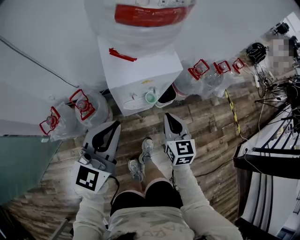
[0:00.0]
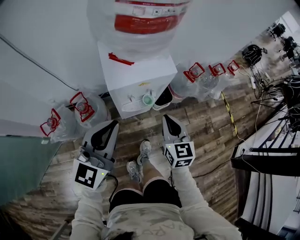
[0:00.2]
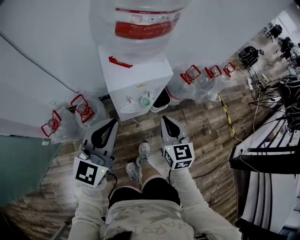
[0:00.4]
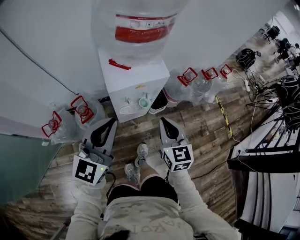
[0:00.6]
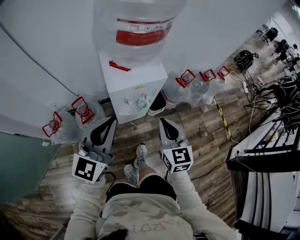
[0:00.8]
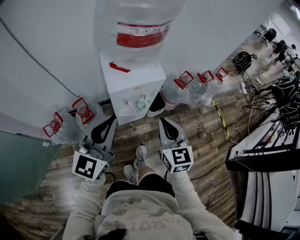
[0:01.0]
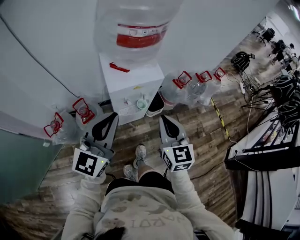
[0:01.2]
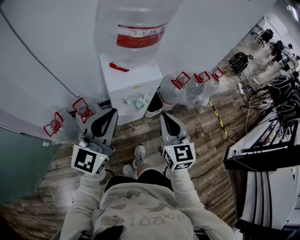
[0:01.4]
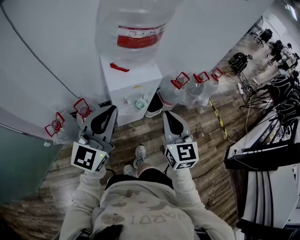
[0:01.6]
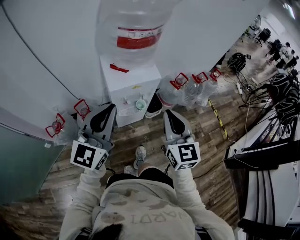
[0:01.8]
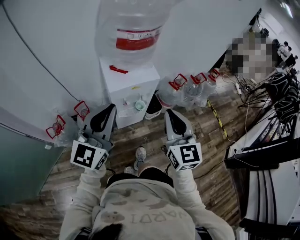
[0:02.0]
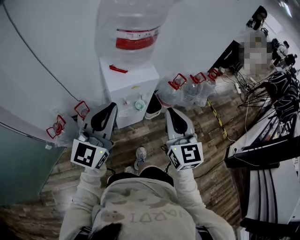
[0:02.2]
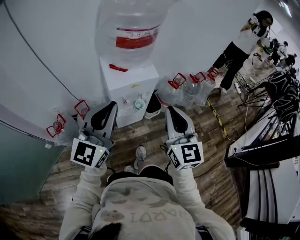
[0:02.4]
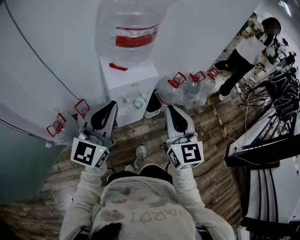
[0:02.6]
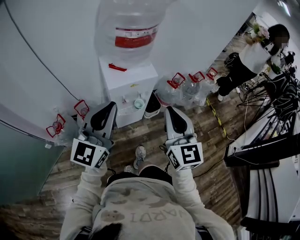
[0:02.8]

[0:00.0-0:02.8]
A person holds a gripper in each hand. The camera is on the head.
0:00.0 to 0:01.4: The left gripper goes roughly 15 cm upward, while the right gripper travels upward and backward by approximately 20 cm.
0:01.4 to 0:02.8: The right gripper is displaced upward and backward by about 10 cm.

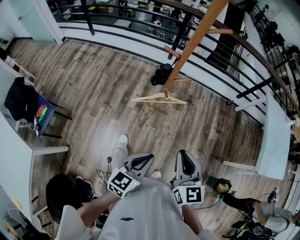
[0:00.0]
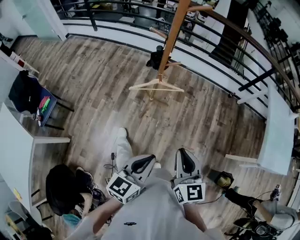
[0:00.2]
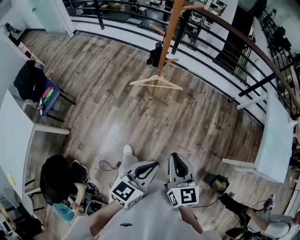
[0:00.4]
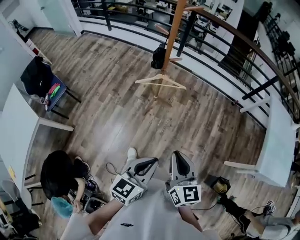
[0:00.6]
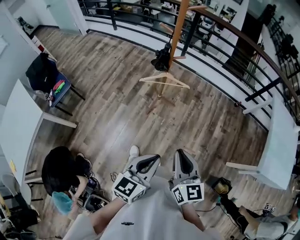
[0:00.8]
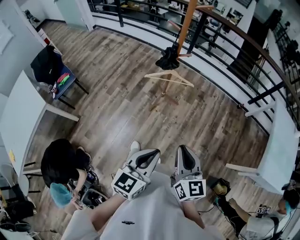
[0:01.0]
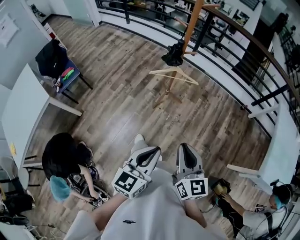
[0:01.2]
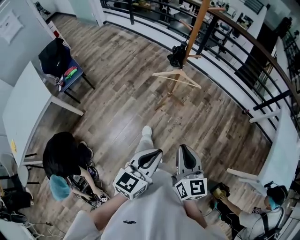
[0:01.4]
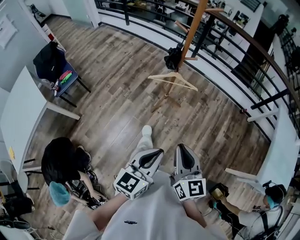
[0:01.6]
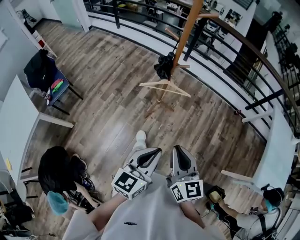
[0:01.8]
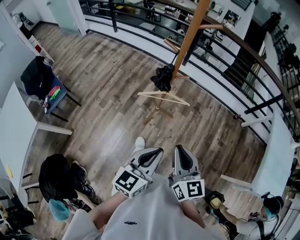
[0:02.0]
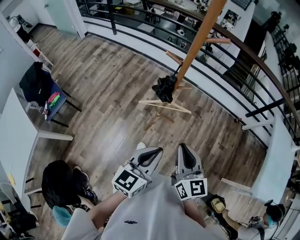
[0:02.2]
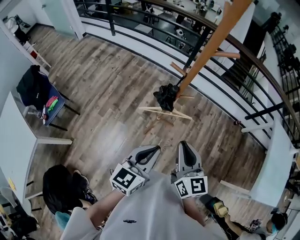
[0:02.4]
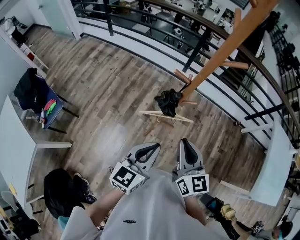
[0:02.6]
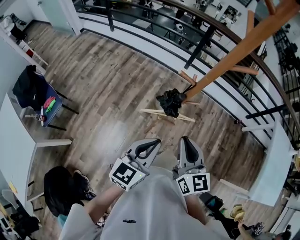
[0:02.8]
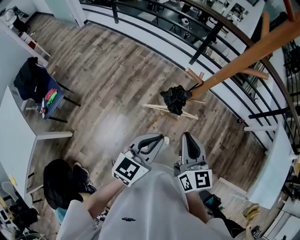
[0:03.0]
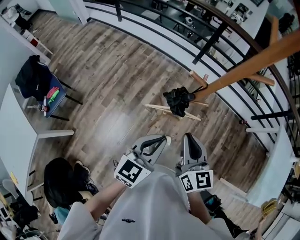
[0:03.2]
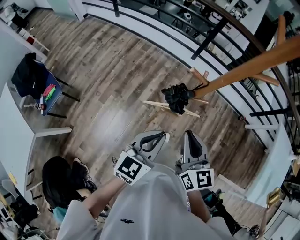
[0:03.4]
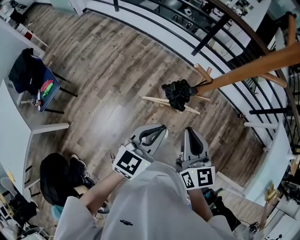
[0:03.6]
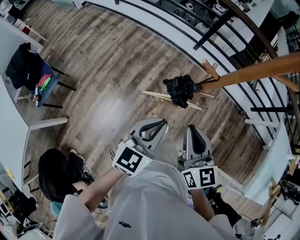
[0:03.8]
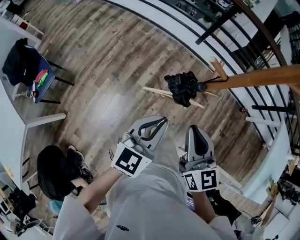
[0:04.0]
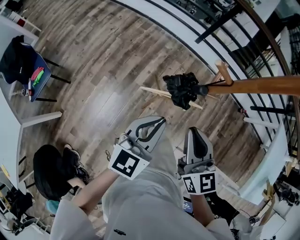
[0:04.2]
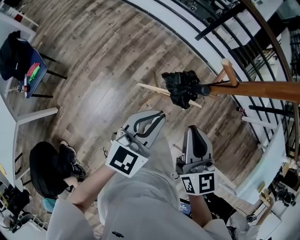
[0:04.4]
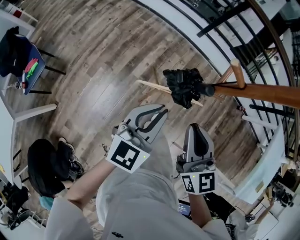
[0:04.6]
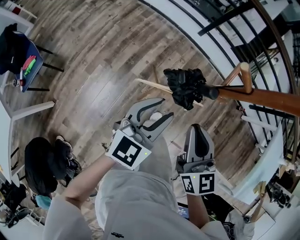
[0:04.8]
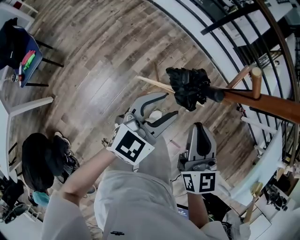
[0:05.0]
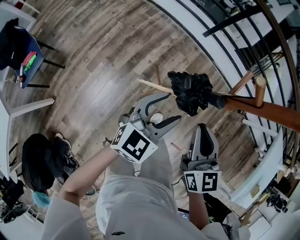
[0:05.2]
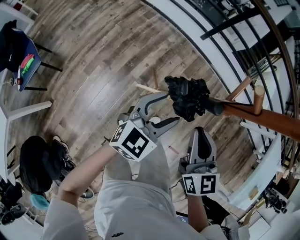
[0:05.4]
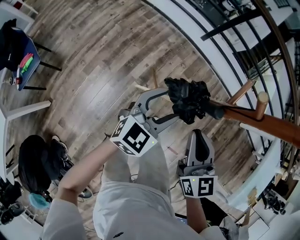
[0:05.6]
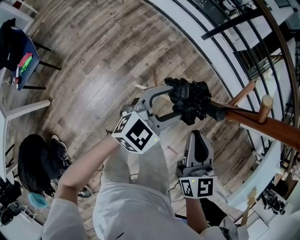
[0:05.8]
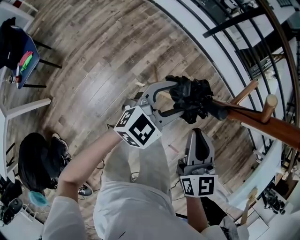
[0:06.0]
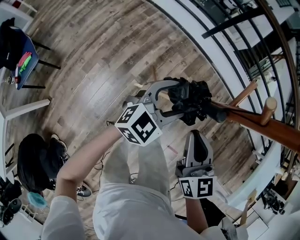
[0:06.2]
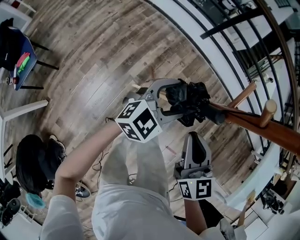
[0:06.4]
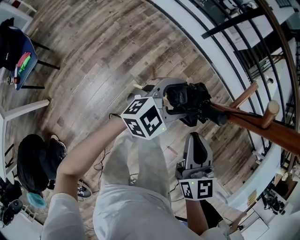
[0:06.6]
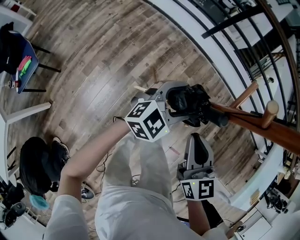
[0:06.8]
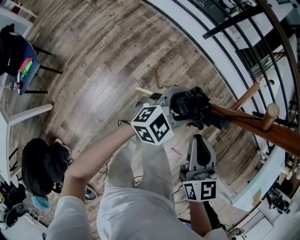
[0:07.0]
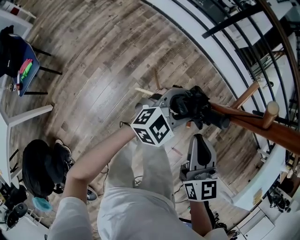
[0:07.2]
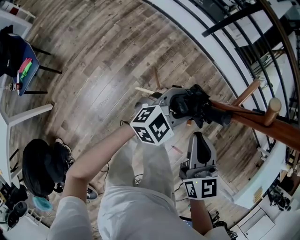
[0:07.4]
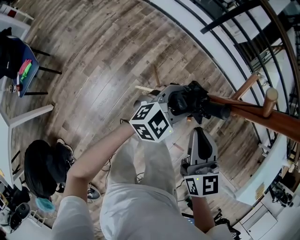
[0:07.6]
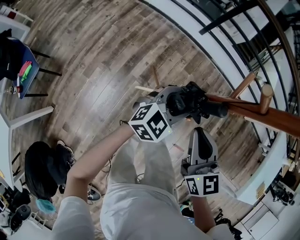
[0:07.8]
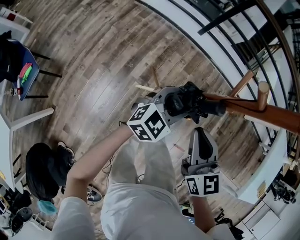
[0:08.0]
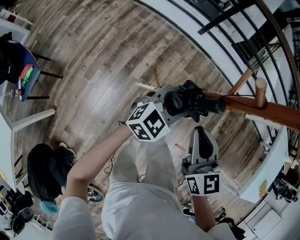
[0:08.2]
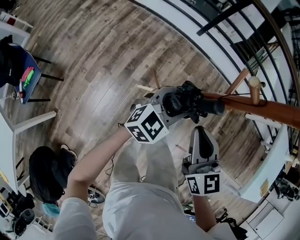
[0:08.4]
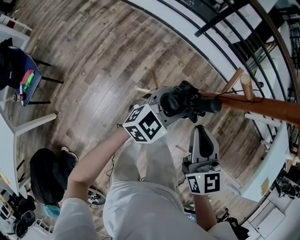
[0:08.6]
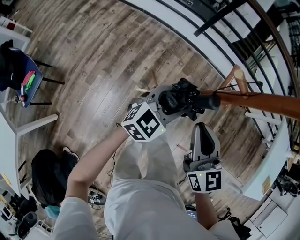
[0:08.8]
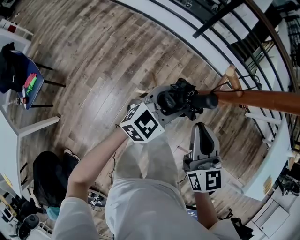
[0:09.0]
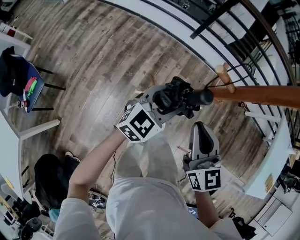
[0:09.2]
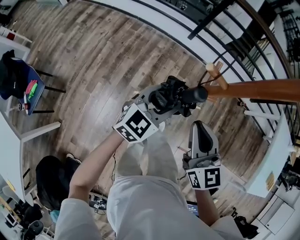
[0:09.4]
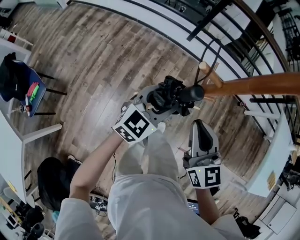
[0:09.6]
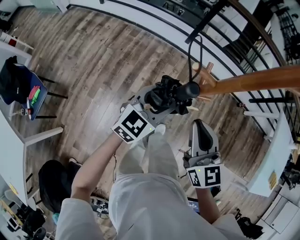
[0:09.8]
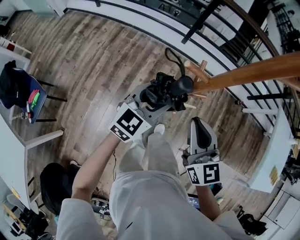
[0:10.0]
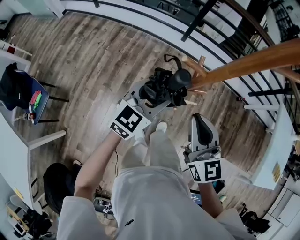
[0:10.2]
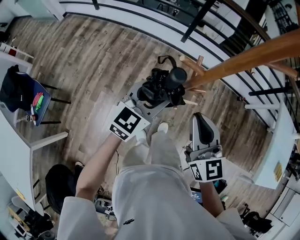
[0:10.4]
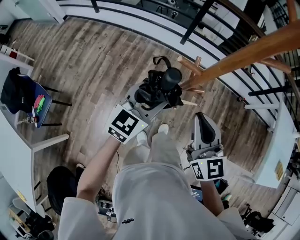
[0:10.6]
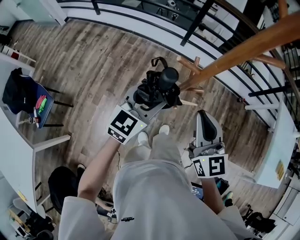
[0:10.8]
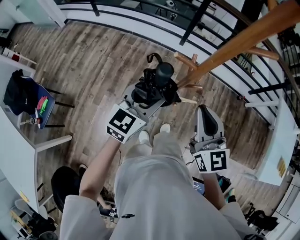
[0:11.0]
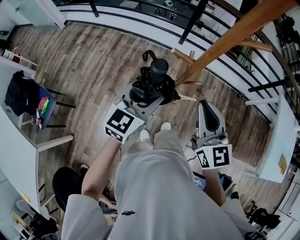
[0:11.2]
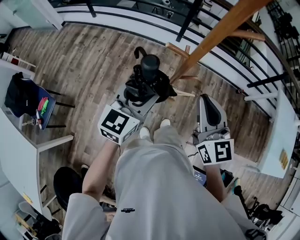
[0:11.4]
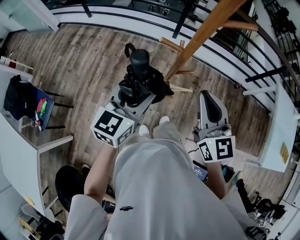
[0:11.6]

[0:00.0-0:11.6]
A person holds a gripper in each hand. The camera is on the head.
0:00.0 to 0:01.4: The grippers both shift backward and to the right by about 25 cm. The left gripper turns by some 20 degrees.
0:01.4 to 0:02.8: The pair of grippers is taken forward, approximately 40 cm.
0:02.8 to 0:04.4: The right gripper heads downward and forward, covering approximately 15 cm; the left gripper is displaced forward and downward by approximately 15 cm.
0:04.4 to 0:05.8: The right gripper is displaced downward by approximately 10 cm, while the left gripper heads downward and forward, covering roughly 15 cm, and opens its fingers.
0:05.8 to 0:07.2: The left gripper changes place by some 5 cm.
0:07.2 to 0:08.8: The two grippers go about 5 cm upward.
0:08.8 to 0:10.2: The grippers both shift upward by about 10 cm.
0:10.2 to 0:11.6: The right gripper is displaced upward by about 10 cm. Meanwhile the left gripper heads upward and backward, covering some 15 cm.

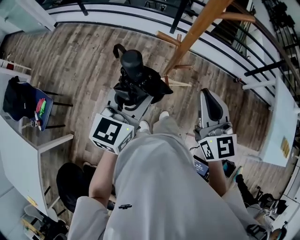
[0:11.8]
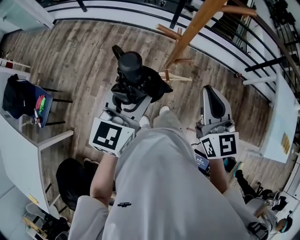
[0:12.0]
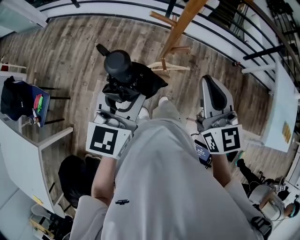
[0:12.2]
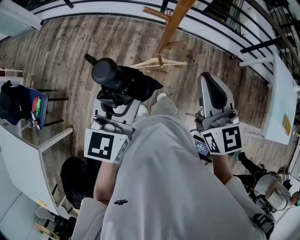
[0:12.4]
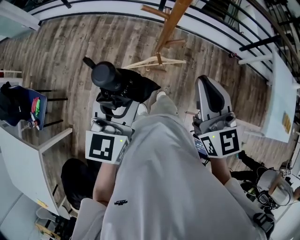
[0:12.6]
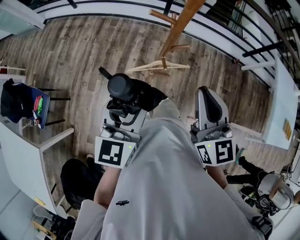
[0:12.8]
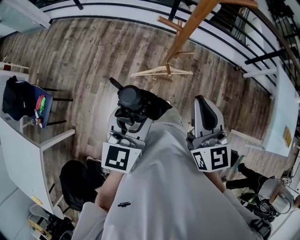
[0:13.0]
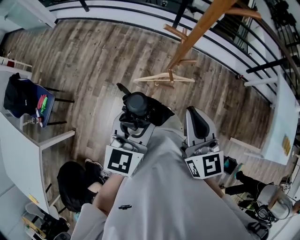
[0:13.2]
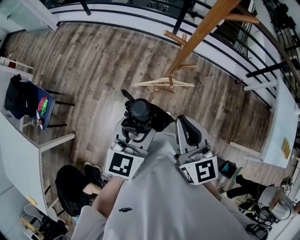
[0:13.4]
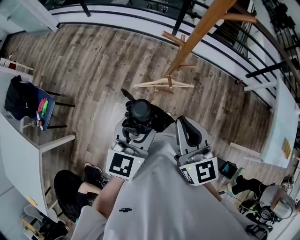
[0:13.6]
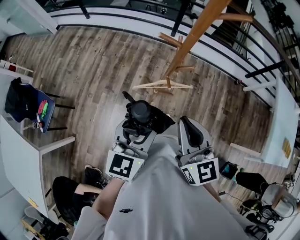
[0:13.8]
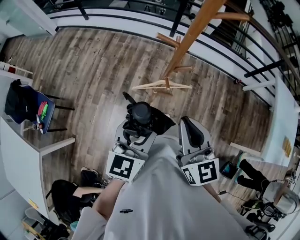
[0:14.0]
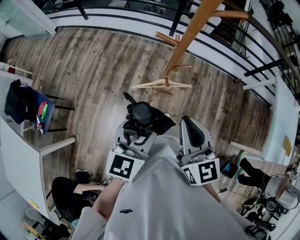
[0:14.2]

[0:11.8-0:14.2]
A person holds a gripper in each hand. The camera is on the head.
0:11.8 to 0:13.0: Both grippers move backward, approximately 10 cm.
0:13.0 to 0:14.2: The right gripper shifts by about 5 cm.

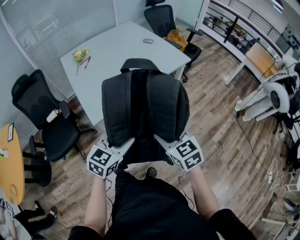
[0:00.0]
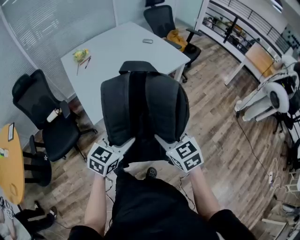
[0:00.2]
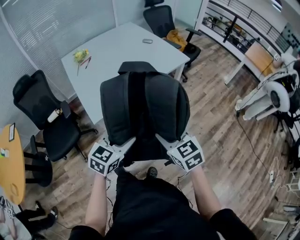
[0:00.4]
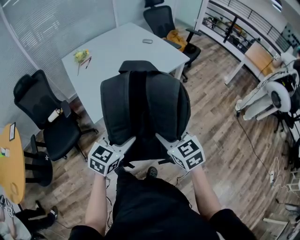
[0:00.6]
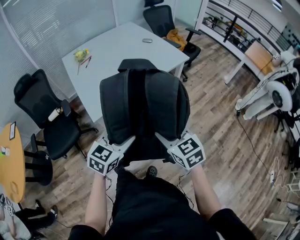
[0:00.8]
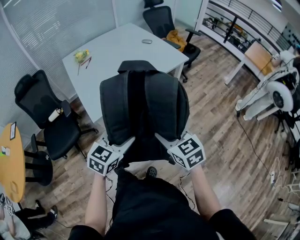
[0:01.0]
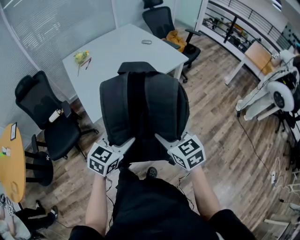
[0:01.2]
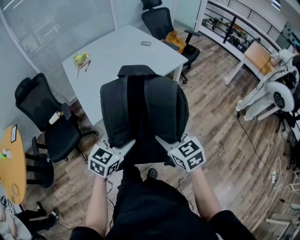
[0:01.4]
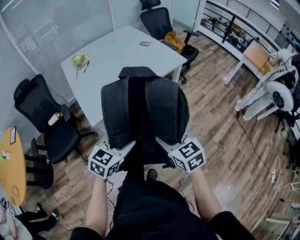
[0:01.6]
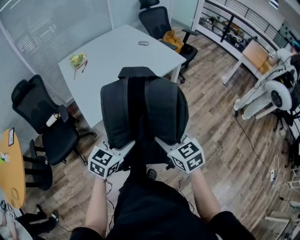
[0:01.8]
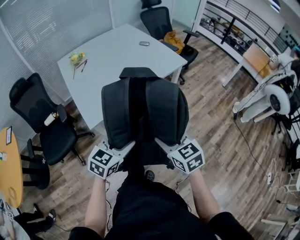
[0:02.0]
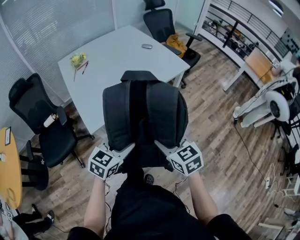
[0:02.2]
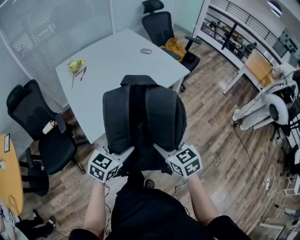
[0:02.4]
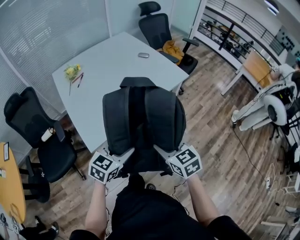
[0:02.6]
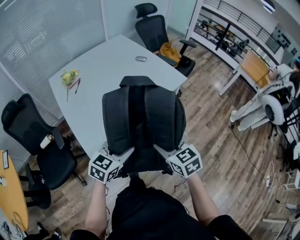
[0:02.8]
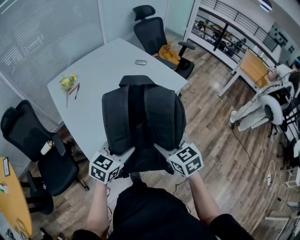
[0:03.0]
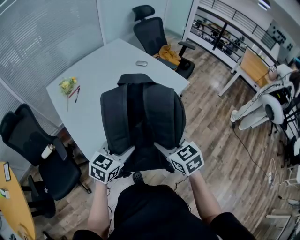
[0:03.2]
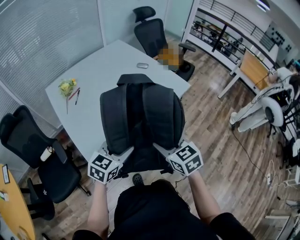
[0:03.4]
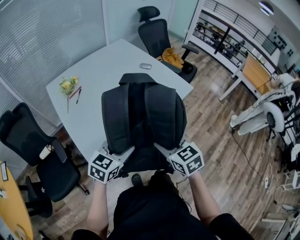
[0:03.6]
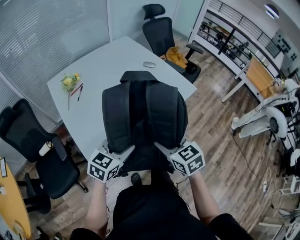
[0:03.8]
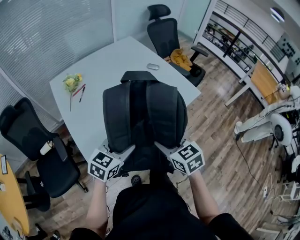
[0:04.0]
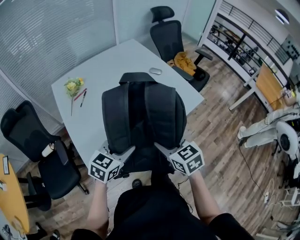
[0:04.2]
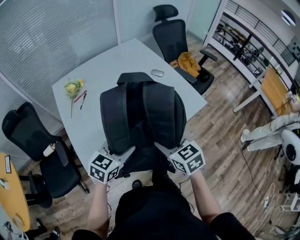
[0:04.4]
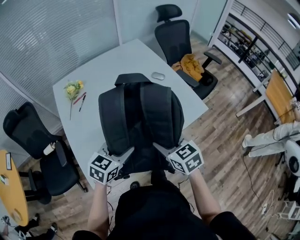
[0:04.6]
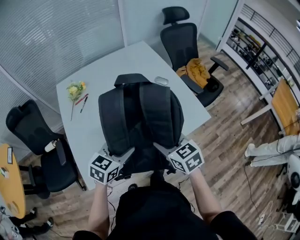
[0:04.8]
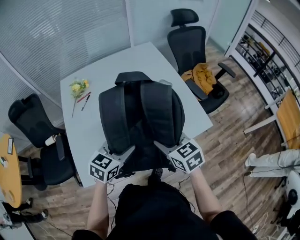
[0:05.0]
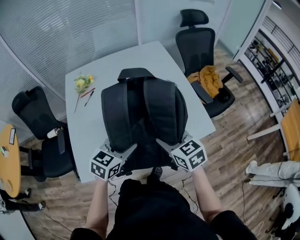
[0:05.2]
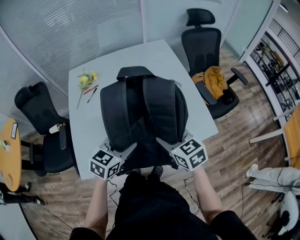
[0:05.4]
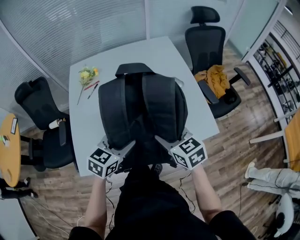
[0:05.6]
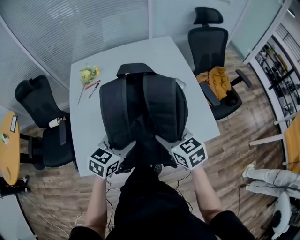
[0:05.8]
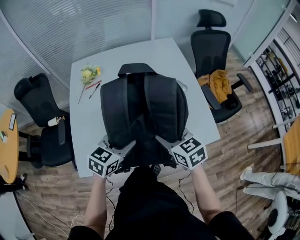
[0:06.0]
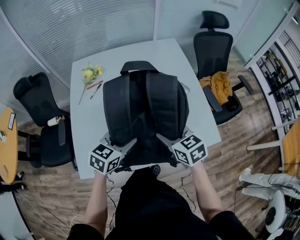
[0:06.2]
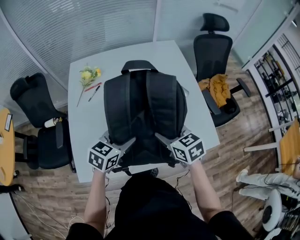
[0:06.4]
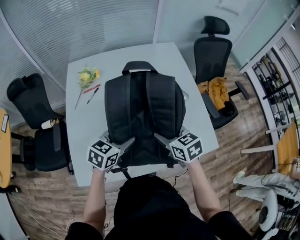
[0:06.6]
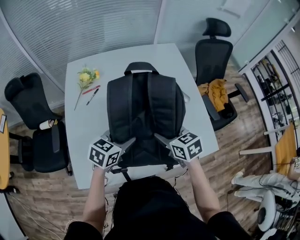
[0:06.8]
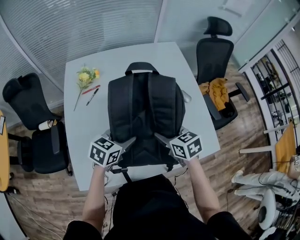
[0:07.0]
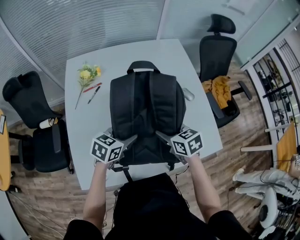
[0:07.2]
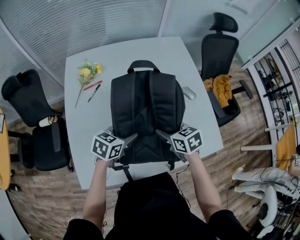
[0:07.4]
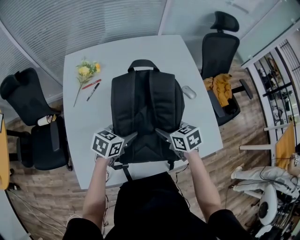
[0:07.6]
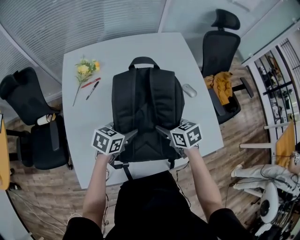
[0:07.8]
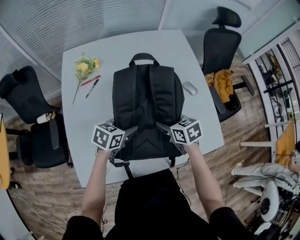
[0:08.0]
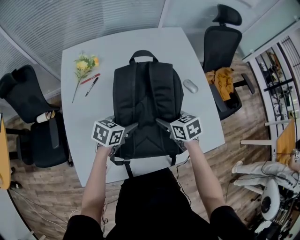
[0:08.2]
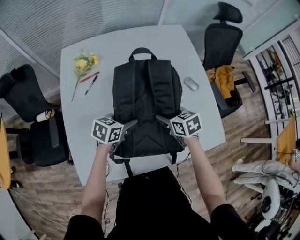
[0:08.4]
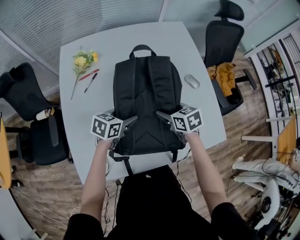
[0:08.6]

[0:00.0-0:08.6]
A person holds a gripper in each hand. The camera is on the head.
0:00.0 to 0:01.4: The grippers make only small movements.
0:01.4 to 0:02.8: The two grippers go some 20 cm forward.
0:02.8 to 0:04.4: The grippers both shift forward by approximately 20 cm.
0:04.4 to 0:05.8: Both grippers travel together forward and to the right, some 15 cm. The right gripper turns by roughly 20 degrees; the left gripper turns by some 20 degrees.
0:05.8 to 0:07.2: Both grippers travel together forward, to the left and downward, some 15 cm.
0:07.2 to 0:08.6: The grippers both shift downward and forward by roughly 10 cm.
